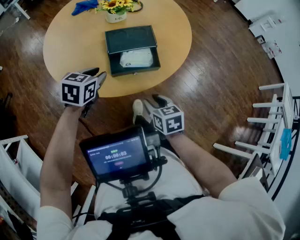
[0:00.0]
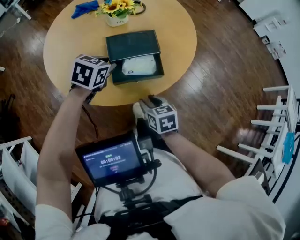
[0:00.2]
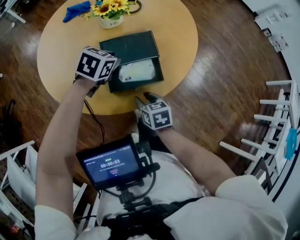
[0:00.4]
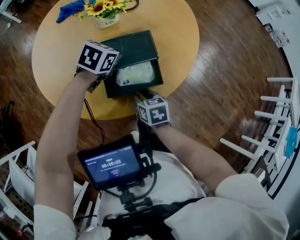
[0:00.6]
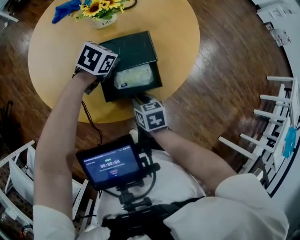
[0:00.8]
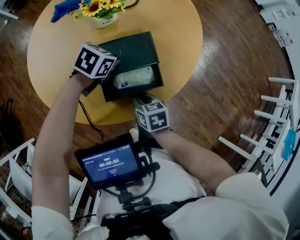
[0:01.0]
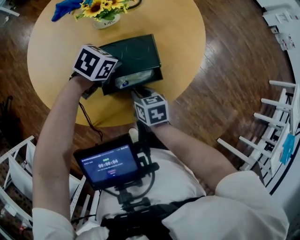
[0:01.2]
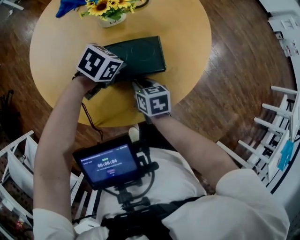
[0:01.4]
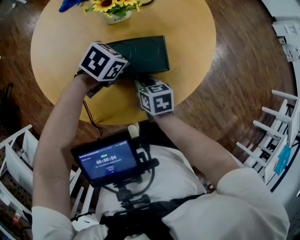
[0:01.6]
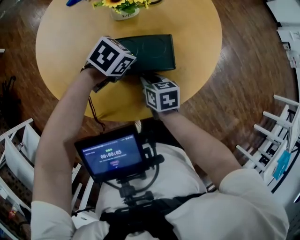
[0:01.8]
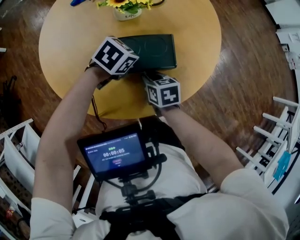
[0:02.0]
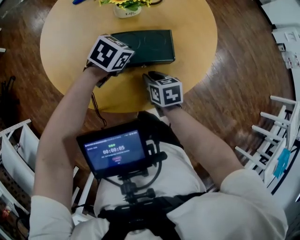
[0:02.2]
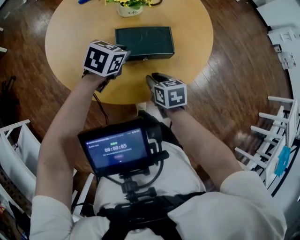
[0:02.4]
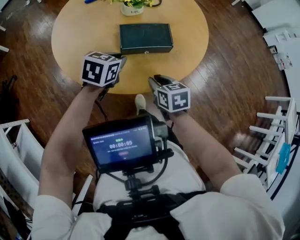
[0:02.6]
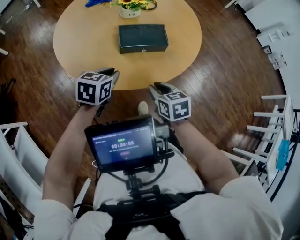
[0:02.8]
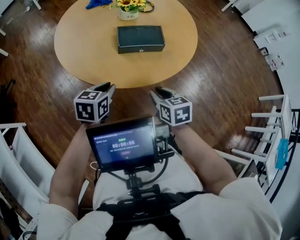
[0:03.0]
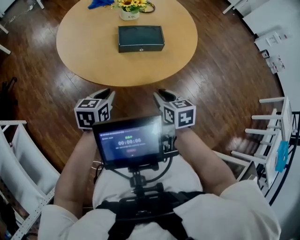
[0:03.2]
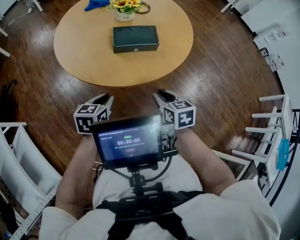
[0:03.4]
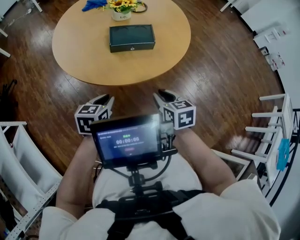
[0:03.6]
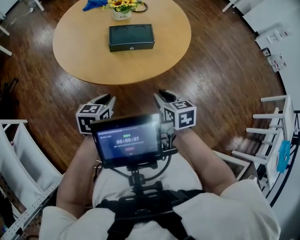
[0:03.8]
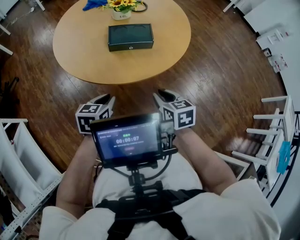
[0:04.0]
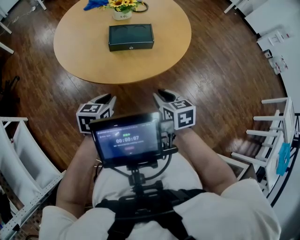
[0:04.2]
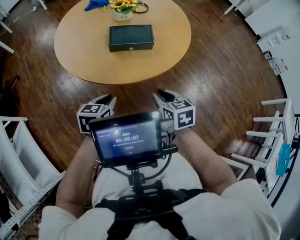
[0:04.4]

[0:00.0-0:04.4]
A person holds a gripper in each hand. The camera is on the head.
0:00.0 to 0:01.4: The right gripper shifts some 20 cm forward, and closes up. Meanwhile the left gripper heads forward and to the right, covering approximately 20 cm, and turns by some 30 degrees.
0:01.4 to 0:03.0: The right gripper travels backward and upward by approximately 20 cm. The left gripper is displaced backward by approximately 25 cm, and turns by some 40 degrees.
0:03.0 to 0:04.4: The left gripper moves backward and to the right, approximately 10 cm. Meanwhile the right gripper is displaced to the right by roughly 5 cm.

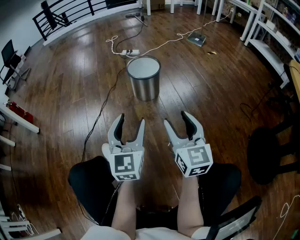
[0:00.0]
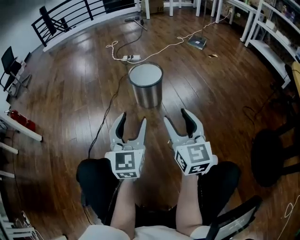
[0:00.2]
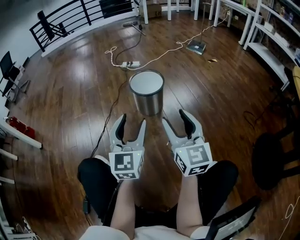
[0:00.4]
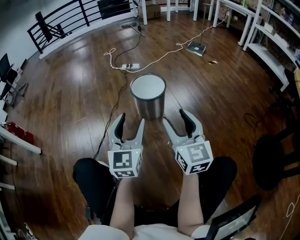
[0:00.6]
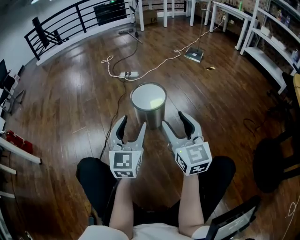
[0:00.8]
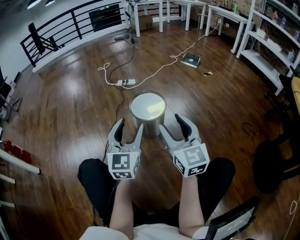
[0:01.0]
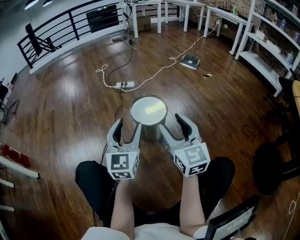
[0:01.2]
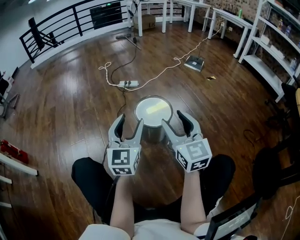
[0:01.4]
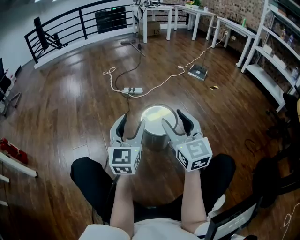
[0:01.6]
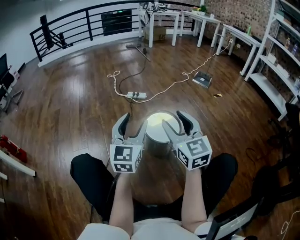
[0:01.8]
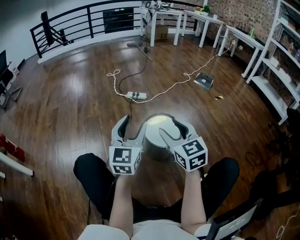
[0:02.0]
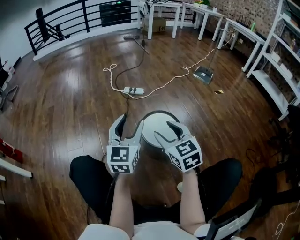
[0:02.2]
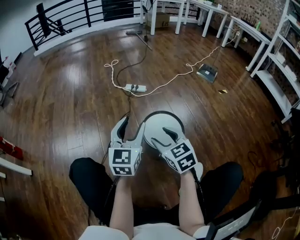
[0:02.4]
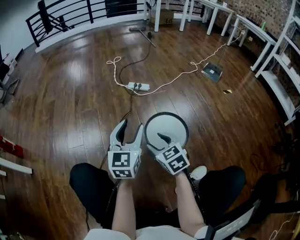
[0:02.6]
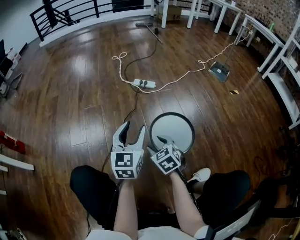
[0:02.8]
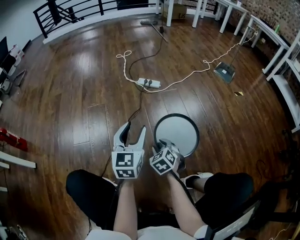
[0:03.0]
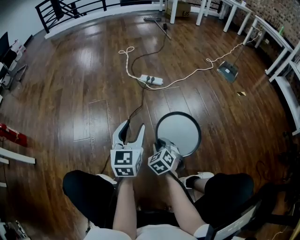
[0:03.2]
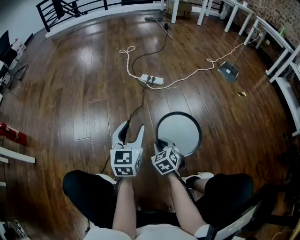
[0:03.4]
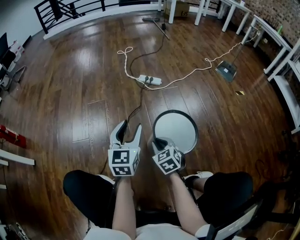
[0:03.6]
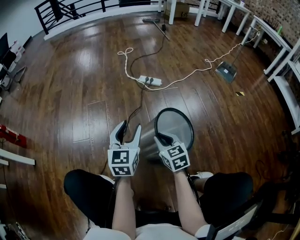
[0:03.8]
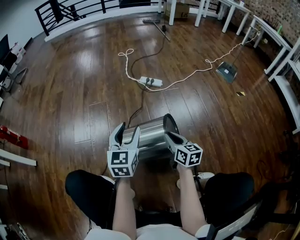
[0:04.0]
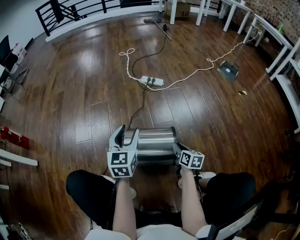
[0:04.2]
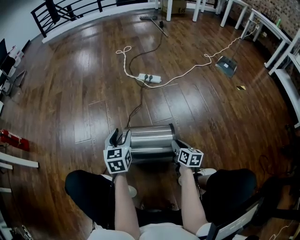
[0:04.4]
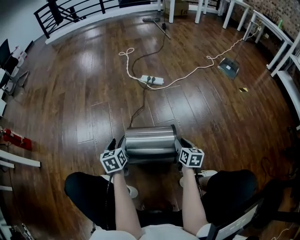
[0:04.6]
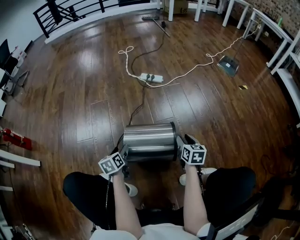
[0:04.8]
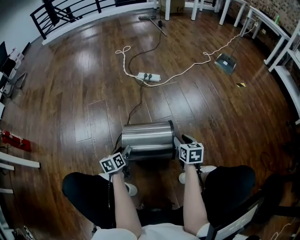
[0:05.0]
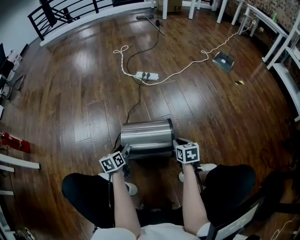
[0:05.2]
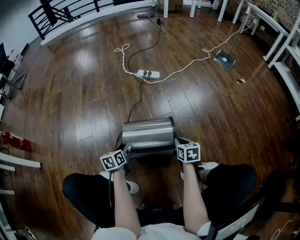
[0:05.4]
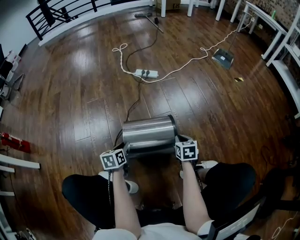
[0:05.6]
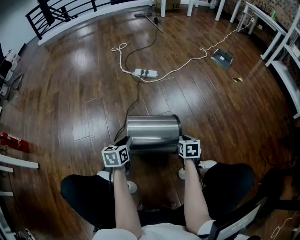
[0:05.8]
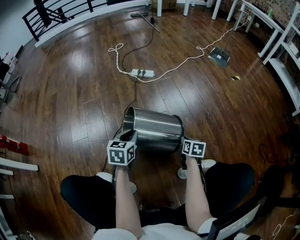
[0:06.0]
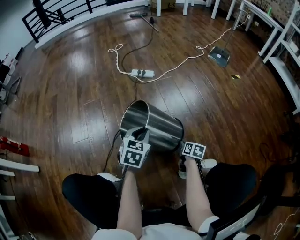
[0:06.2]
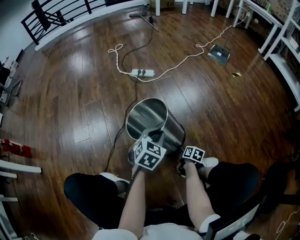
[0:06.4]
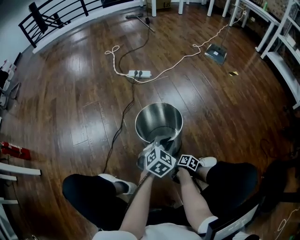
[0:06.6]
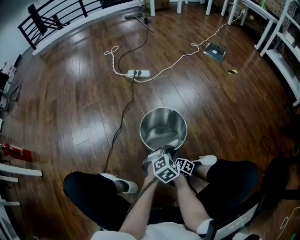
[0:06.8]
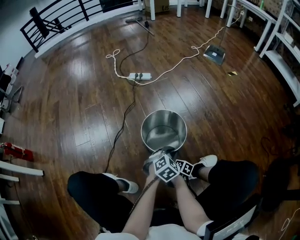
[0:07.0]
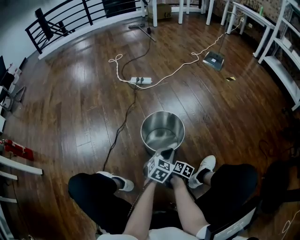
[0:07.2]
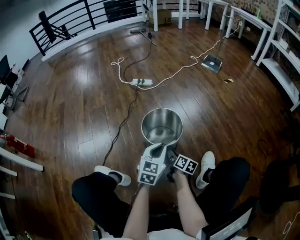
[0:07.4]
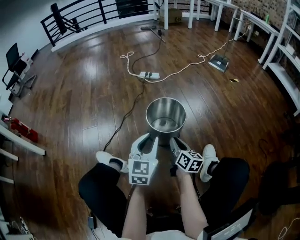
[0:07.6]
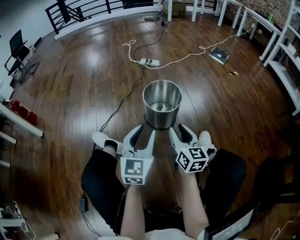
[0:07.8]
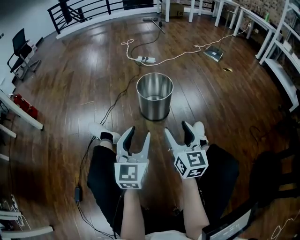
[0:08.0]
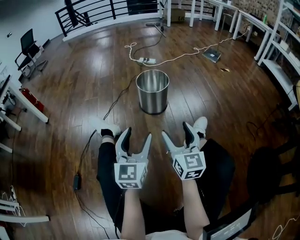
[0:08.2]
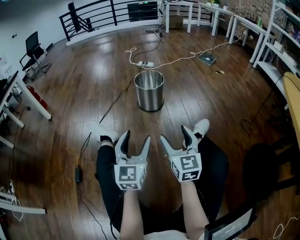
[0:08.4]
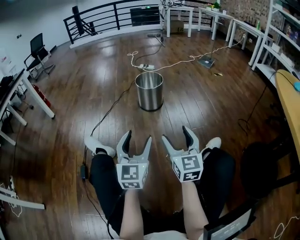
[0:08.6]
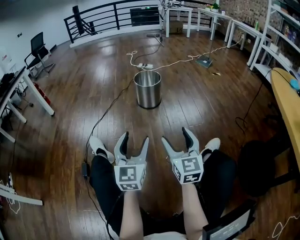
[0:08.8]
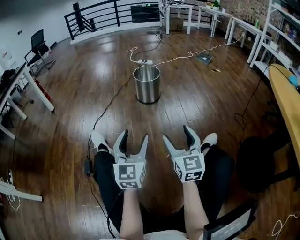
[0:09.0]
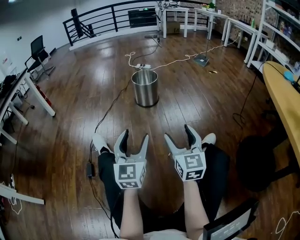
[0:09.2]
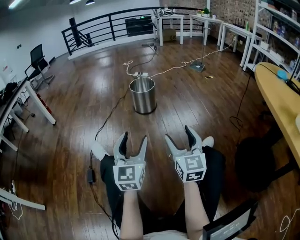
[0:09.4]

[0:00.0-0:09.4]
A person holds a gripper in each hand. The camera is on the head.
0:00.0 to 0:01.6: The right gripper is displaced forward and to the left by roughly 30 cm. Meanwhile the left gripper travels forward by some 30 cm.
0:01.6 to 0:03.2: The right gripper goes about 40 cm downward and forward, tips its fingers downward by approximately 50 degrees, and closes its fingers, while the left gripper goes some 20 cm forward and downward.
0:03.2 to 0:04.8: The right gripper shifts some 15 cm to the right, and twists approximately 50 degrees clockwise, seen from behind. The left gripper moves downward and to the left, roughly 25 cm, and swivels about 40 degrees.
0:04.8 to 0:06.2: The left gripper heads to the right and upward, covering approximately 20 cm, rotates around the line of its fingers by some 50 degrees, clockwise from behind, and closes up, while the right gripper heads downward, backward and to the right, covering roughly 15 cm, changes its angle by approximately 30 degrees, and closes up.
0:06.2 to 0:07.8: The right gripper travels upward and backward by about 35 cm, points its fingers about 40 degrees further upward, and opens its fingers. Meanwhile the left gripper shifts about 30 cm backward and upward, and tilts its fingers about 30 degrees upward.
0:07.8 to 0:09.4: Both grippers are carried backward, approximately 50 cm. The left gripper opens its fingers. Meanwhile the right gripper changes its angle by approximately 20 degrees, and opens its fingers.

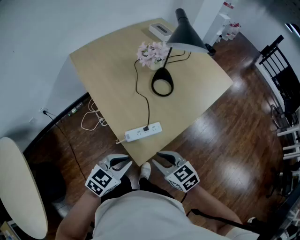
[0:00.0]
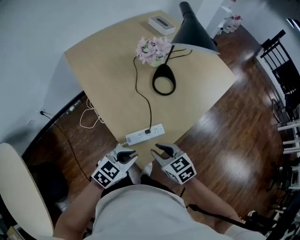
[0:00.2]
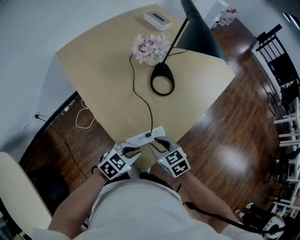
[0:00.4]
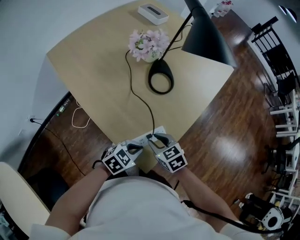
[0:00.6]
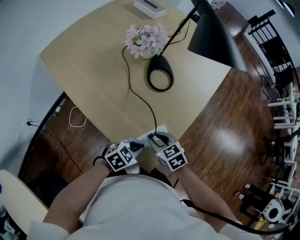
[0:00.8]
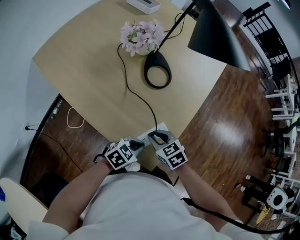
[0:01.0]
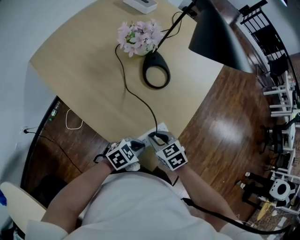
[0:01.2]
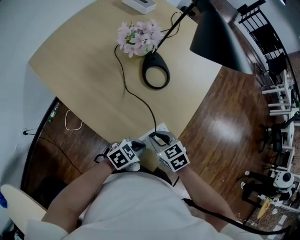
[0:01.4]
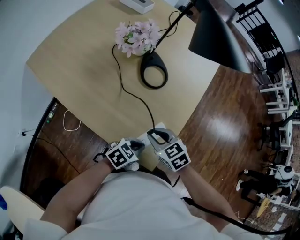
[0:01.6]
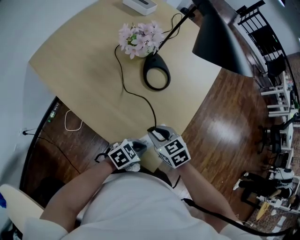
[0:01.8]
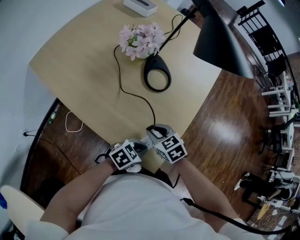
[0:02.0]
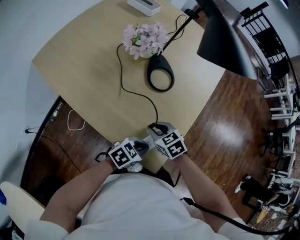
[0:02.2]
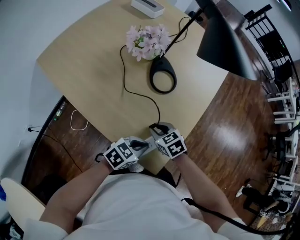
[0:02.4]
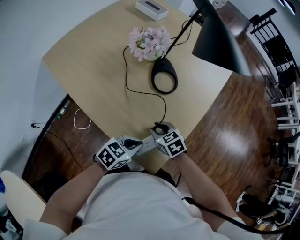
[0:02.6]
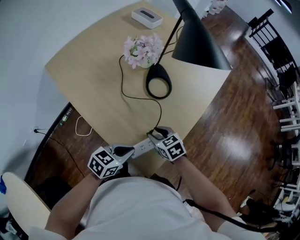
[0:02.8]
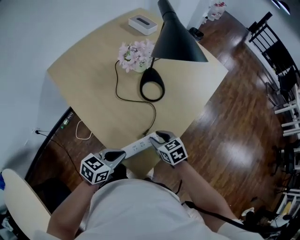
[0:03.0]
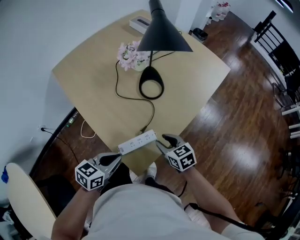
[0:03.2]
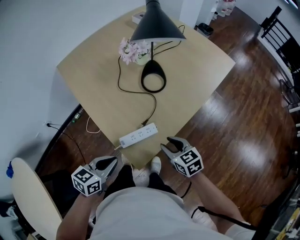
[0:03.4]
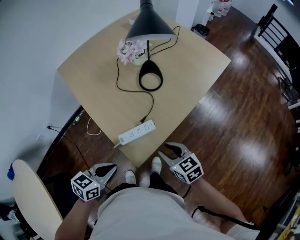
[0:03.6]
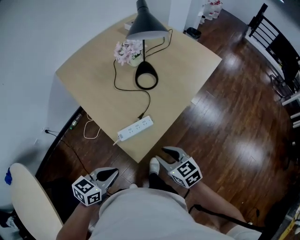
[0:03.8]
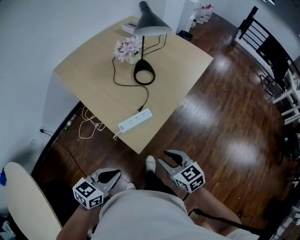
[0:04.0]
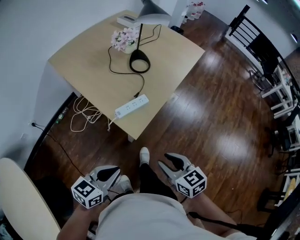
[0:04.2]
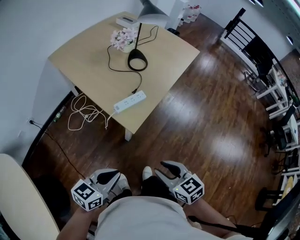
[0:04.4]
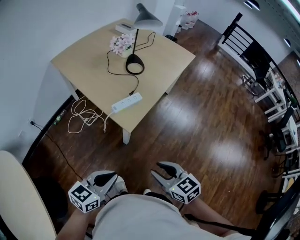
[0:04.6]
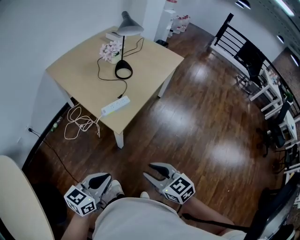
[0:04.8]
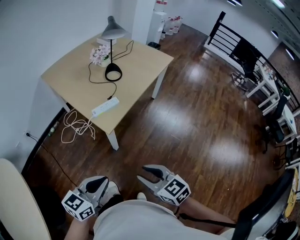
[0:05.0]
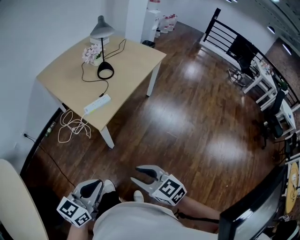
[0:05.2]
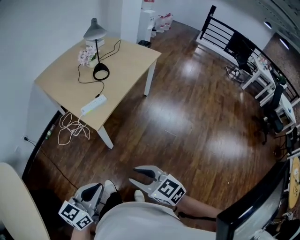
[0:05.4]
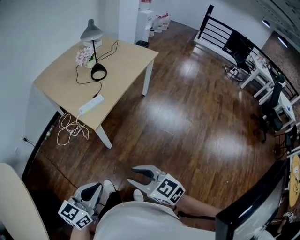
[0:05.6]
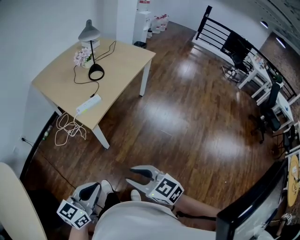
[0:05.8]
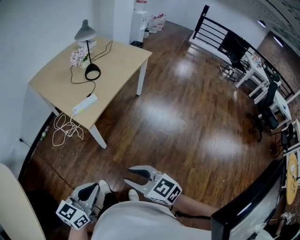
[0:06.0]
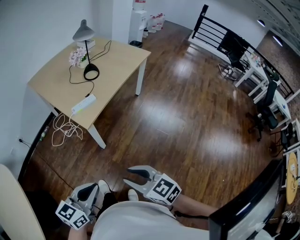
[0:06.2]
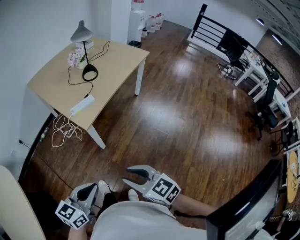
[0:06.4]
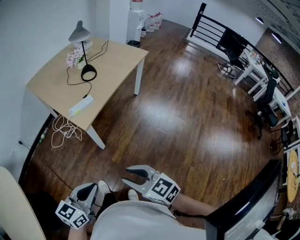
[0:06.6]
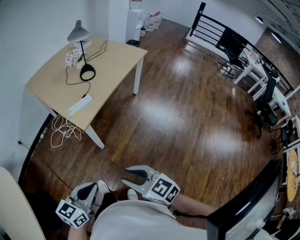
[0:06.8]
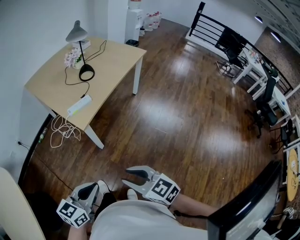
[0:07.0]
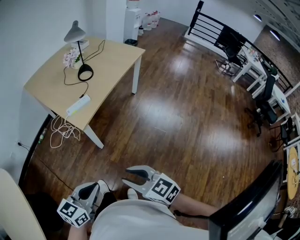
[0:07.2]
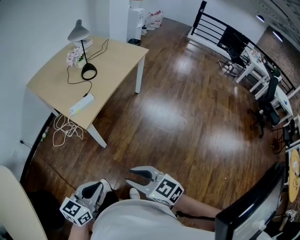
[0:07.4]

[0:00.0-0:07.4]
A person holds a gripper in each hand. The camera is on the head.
0:00.0 to 0:01.4: The left gripper heads downward, covering roughly 15 cm, and changes its angle by some 40 degrees. The right gripper changes place by approximately 20 cm, and rotates roughly 30 degrees.
0:01.4 to 0:03.0: The right gripper moves approximately 5 cm, while the left gripper goes roughly 10 cm upward, and swivels roughly 30 degrees.
0:03.0 to 0:04.4: Both grippers move backward, some 35 cm.
0:04.4 to 0:06.0: Both grippers travel together backward and to the right, approximately 20 cm.
0:06.0 to 0:07.4: There are only small adjustments of the grippers.

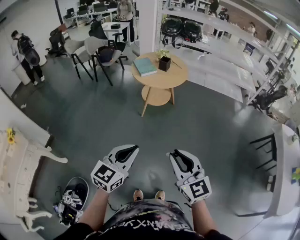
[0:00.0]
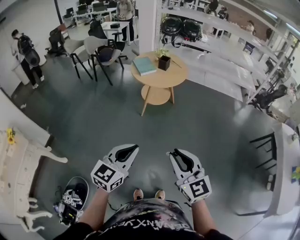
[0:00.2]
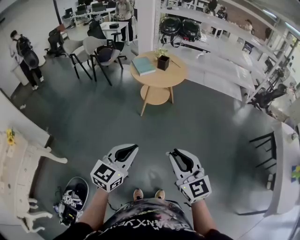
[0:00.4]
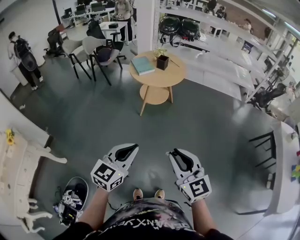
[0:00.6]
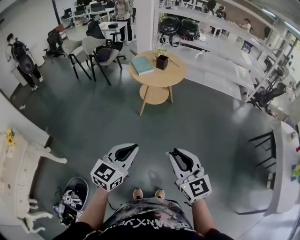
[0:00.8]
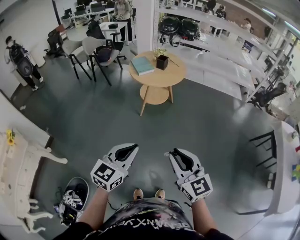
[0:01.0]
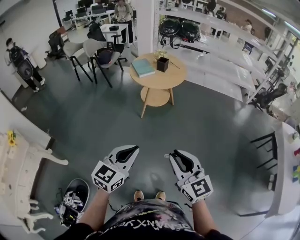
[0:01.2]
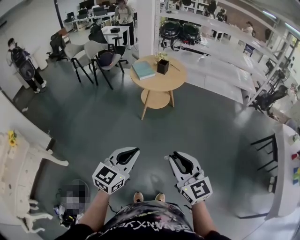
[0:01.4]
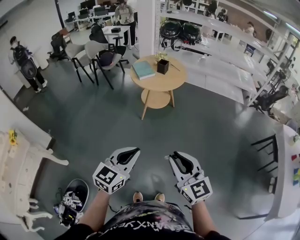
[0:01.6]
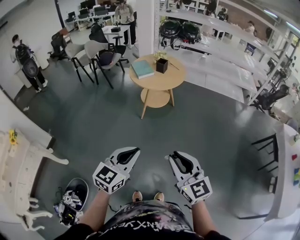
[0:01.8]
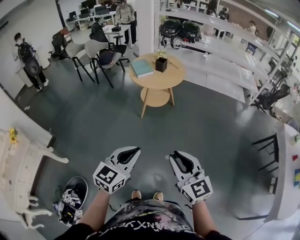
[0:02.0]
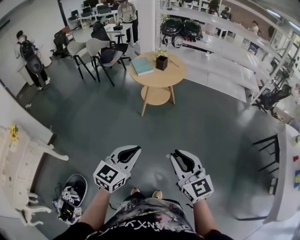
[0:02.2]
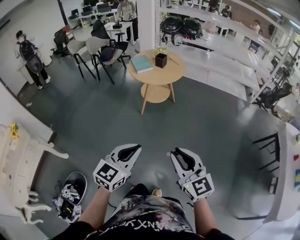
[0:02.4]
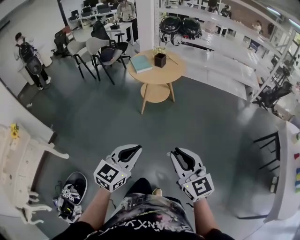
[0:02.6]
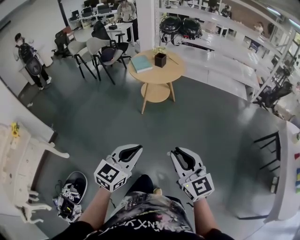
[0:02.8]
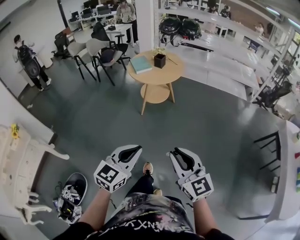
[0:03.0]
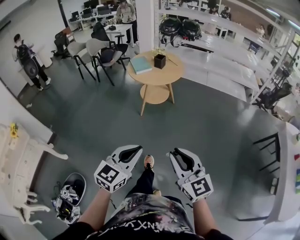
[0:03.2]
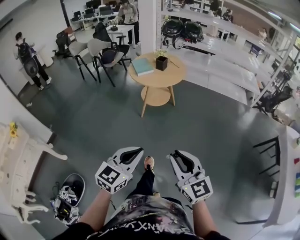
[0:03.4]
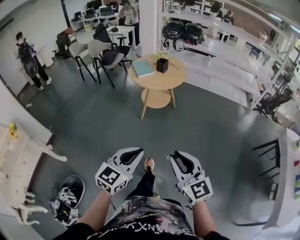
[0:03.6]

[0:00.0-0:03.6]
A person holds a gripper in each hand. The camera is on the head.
0:00.0 to 0:01.8: The left gripper moves to the right, about 5 cm.
0:01.8 to 0:03.6: Both grippers move to the right, approximately 5 cm.
